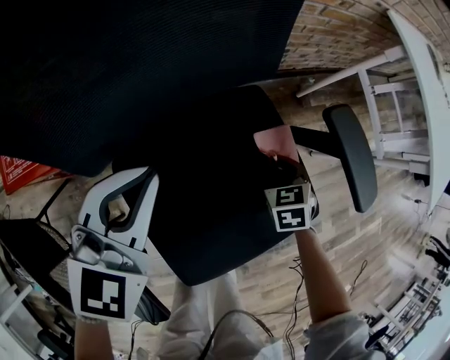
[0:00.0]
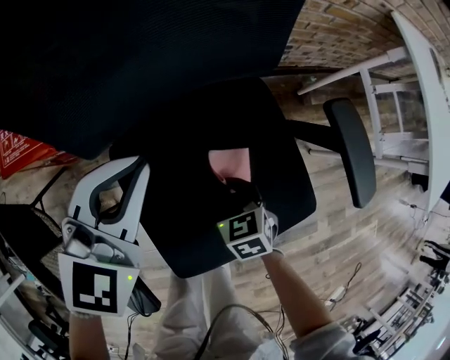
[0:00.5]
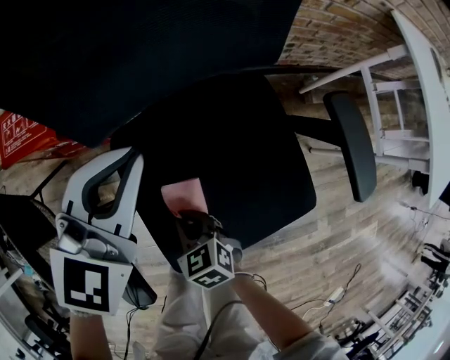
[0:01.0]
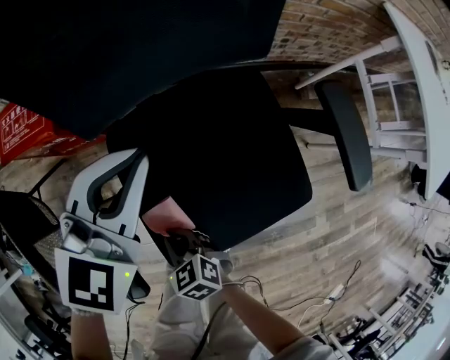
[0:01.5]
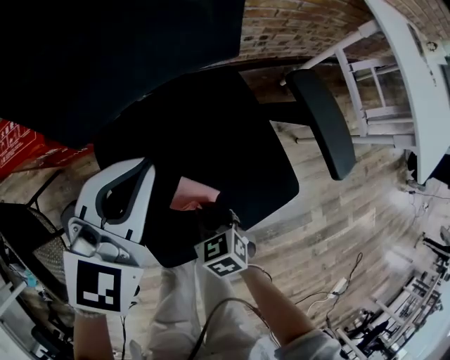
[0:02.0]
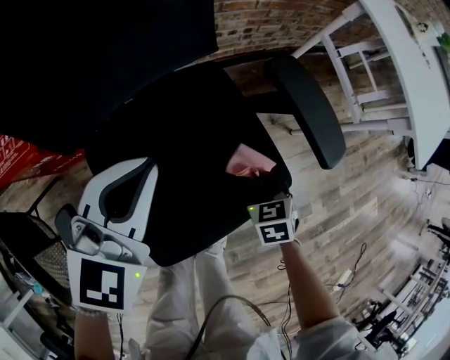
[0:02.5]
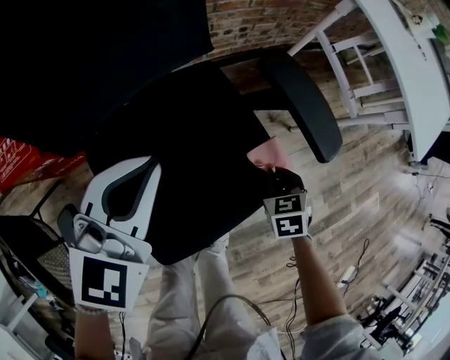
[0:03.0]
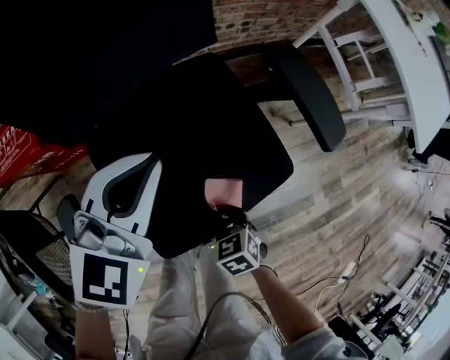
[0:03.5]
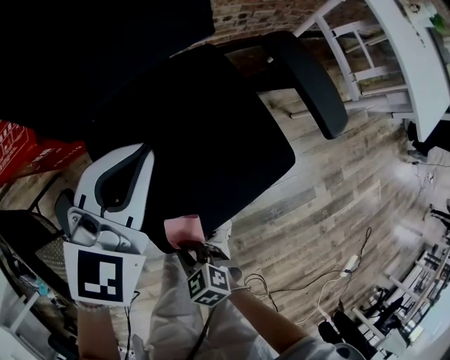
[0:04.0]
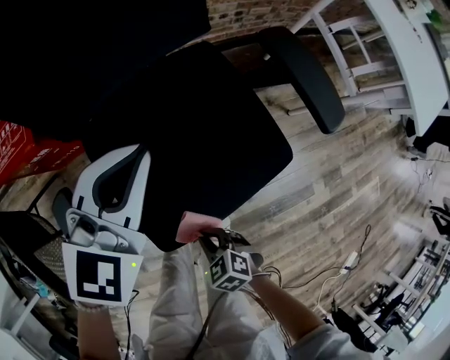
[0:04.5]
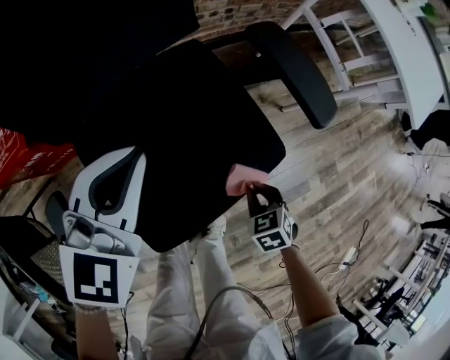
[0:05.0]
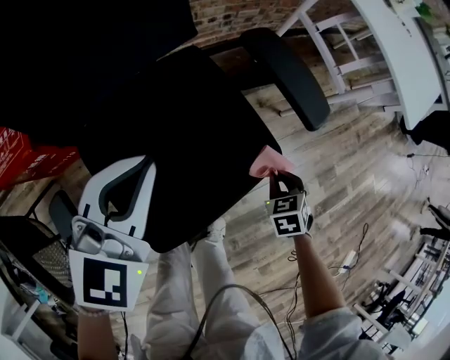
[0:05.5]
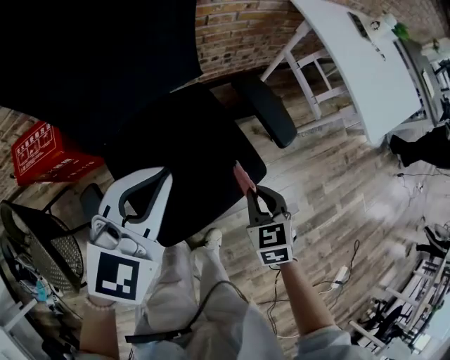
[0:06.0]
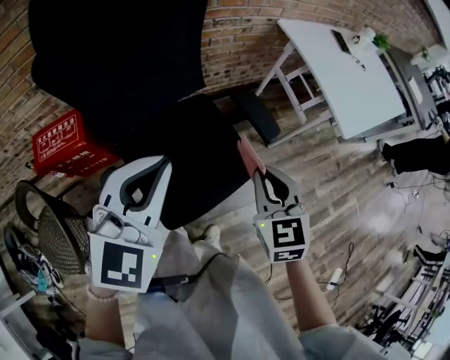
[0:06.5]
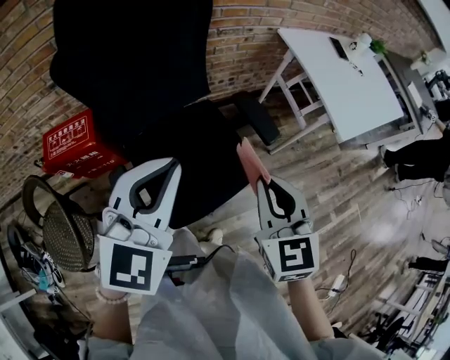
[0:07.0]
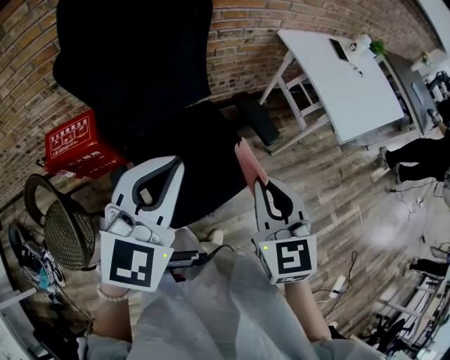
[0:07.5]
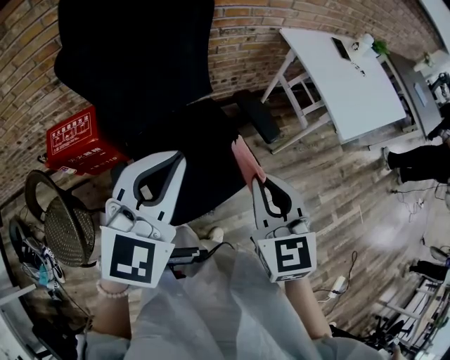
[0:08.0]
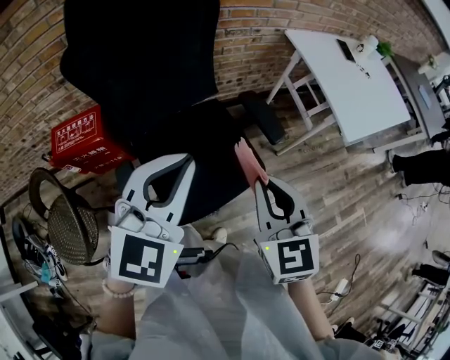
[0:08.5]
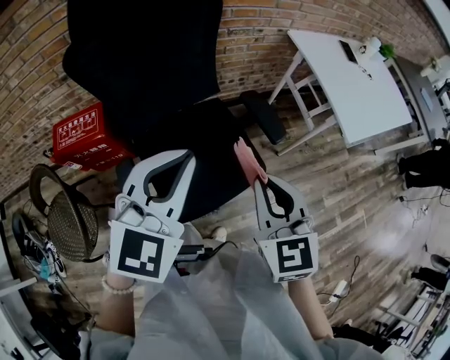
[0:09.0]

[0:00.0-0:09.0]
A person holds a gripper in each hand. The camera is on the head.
0:00.0 to 0:02.0: The left gripper shifts by about 10 cm; the right gripper turns by approximately 20 degrees.
0:02.0 to 0:04.5: The right gripper changes place by roughly 15 cm. The left gripper moves some 5 cm.
0:04.5 to 0:07.0: The right gripper moves upward, some 50 cm, and angles its fingers upward, by roughly 40 degrees; the left gripper is displaced upward by some 35 cm.
0:07.0 to 0:09.0: The grippers stay close to where they were, moving slightly.

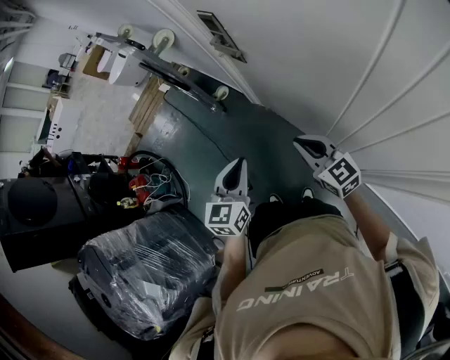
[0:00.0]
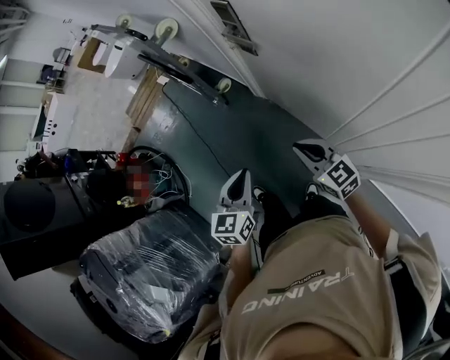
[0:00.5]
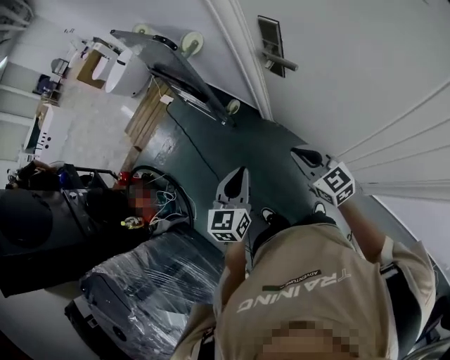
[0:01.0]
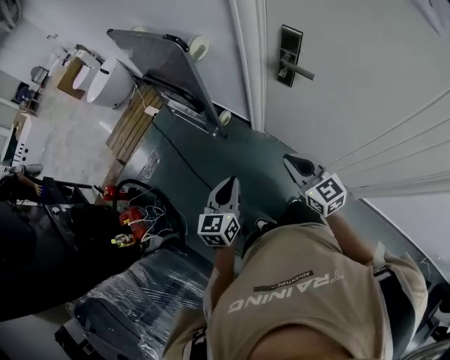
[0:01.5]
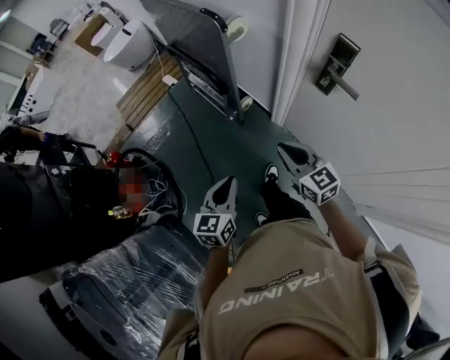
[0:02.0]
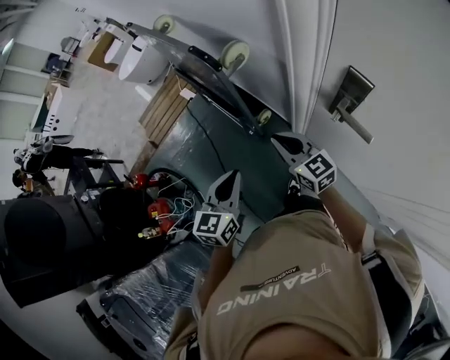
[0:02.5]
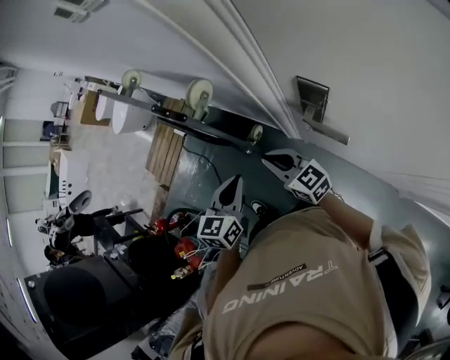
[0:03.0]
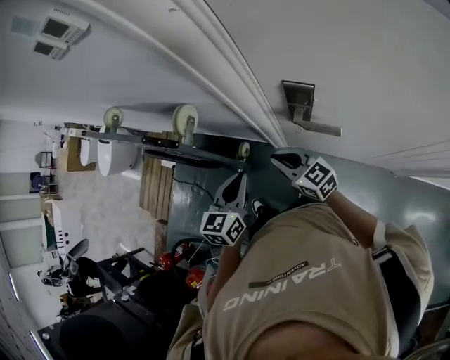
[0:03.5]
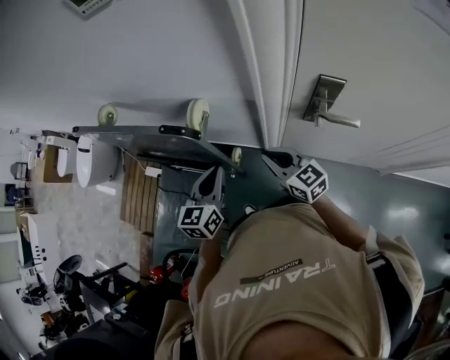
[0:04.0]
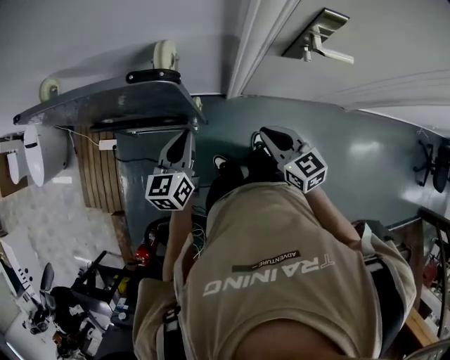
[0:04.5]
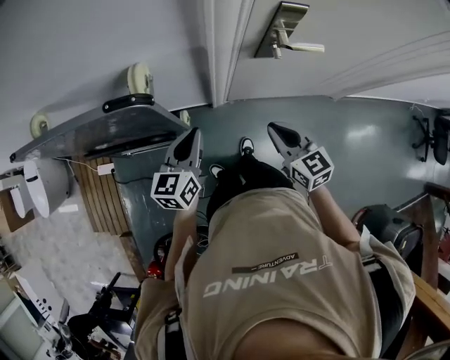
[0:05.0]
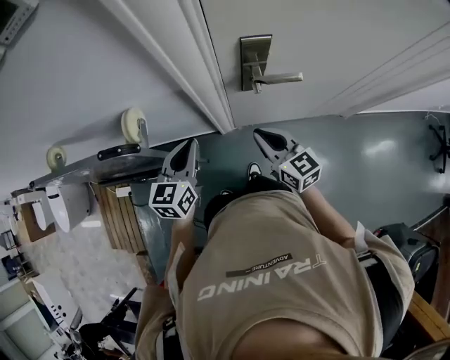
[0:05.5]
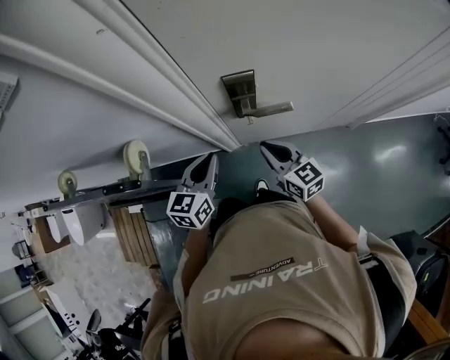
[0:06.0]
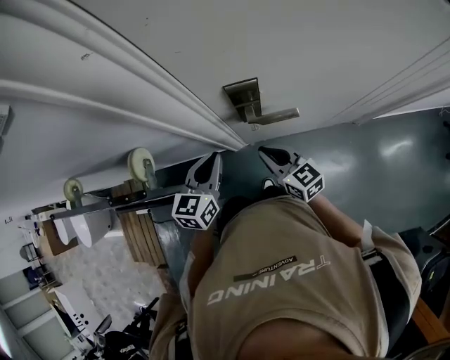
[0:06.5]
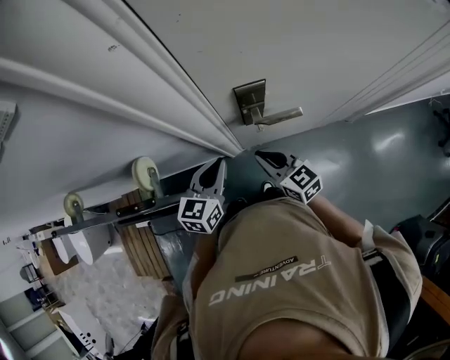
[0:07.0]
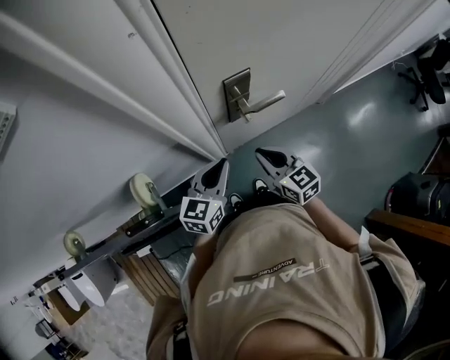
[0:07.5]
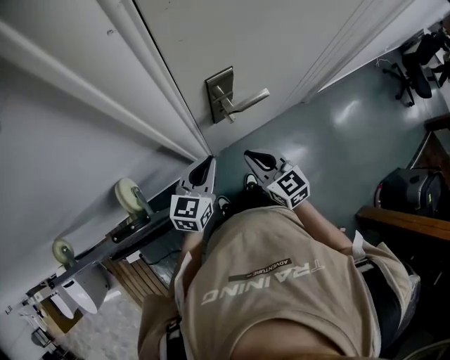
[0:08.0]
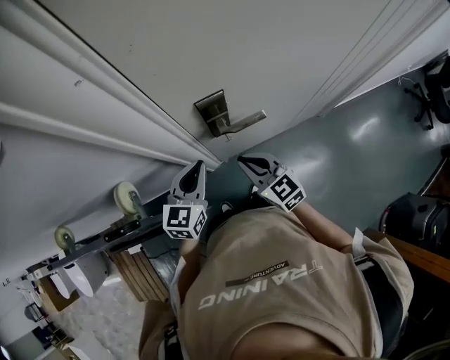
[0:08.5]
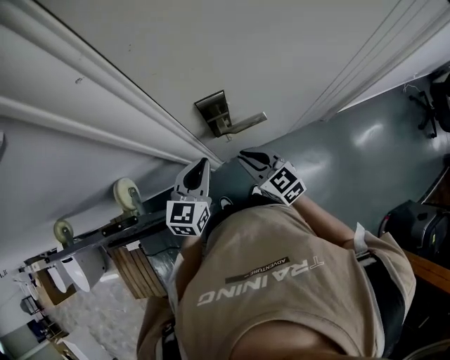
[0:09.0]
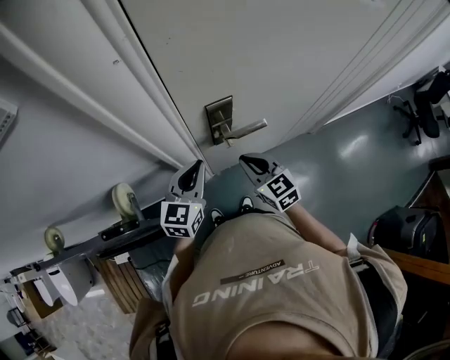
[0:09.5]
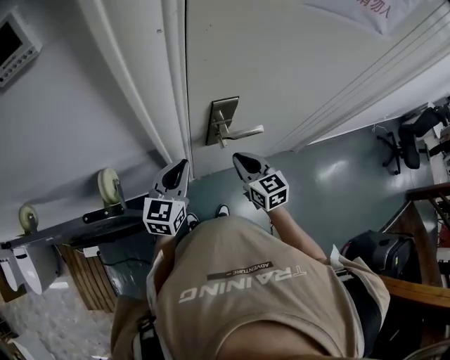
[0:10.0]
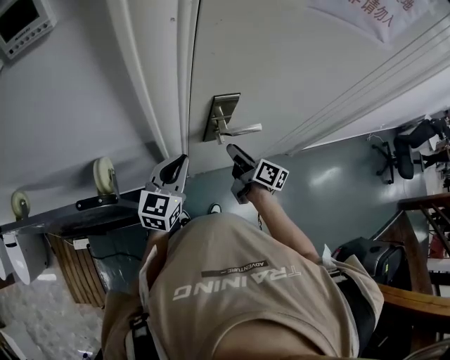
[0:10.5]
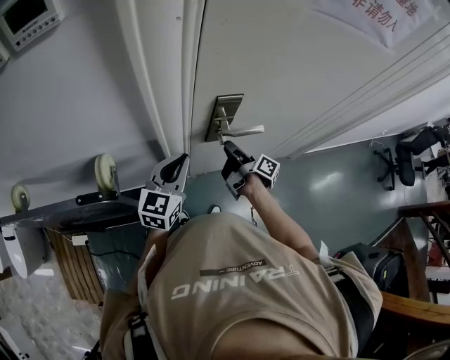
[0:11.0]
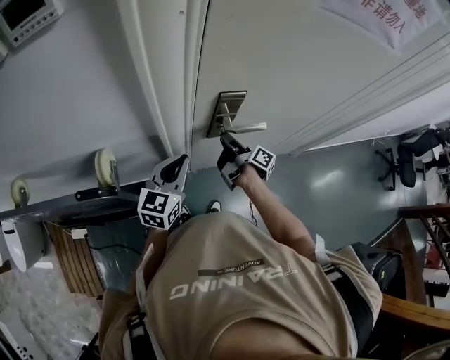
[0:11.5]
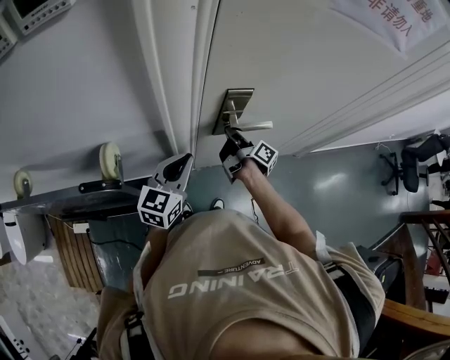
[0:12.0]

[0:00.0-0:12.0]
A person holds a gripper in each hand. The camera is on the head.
0:00.0 to 0:02.0: The pair of grippers is taken to the left and forward, approximately 40 cm.
0:02.0 to 0:04.0: The right gripper shifts by about 25 cm, and rotates some 30 degrees. The left gripper shifts by approximately 40 cm, and swivels about 30 degrees.
0:04.0 to 0:06.0: The right gripper ends up roughly 20 cm from where it was, and changes its angle by about 30 degrees, while the left gripper shifts by about 20 cm, and swivels approximately 30 degrees.
0:06.0 to 0:08.0: The left gripper changes its angle by approximately 30 degrees; the right gripper moves about 5 cm, and swivels roughly 20 degrees.
0:08.0 to 0:10.0: The left gripper changes place by approximately 5 cm. Meanwhile the right gripper heads forward, covering some 5 cm.
0:10.0 to 0:12.0: The right gripper goes roughly 10 cm forward and downward, rotates around the line of its fingers by approximately 80 degrees, clockwise from behind, and opens, then closes again.

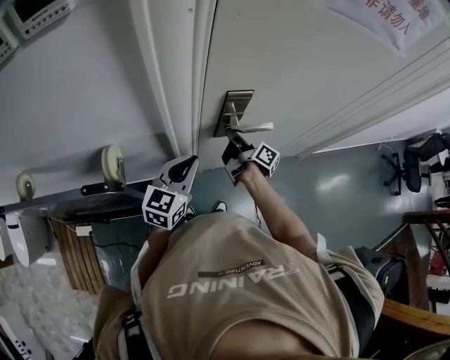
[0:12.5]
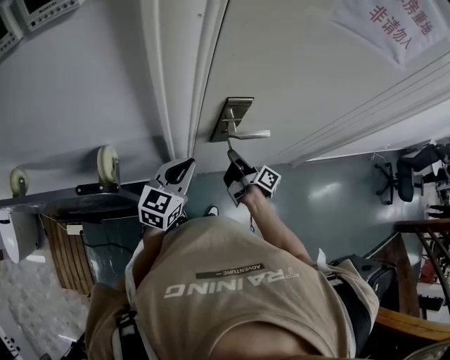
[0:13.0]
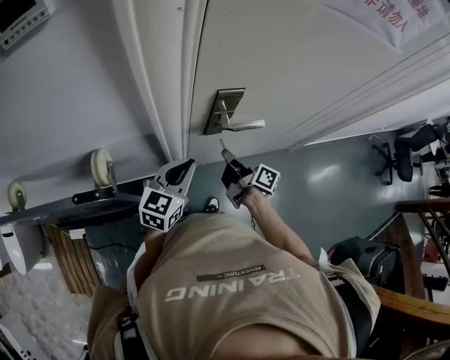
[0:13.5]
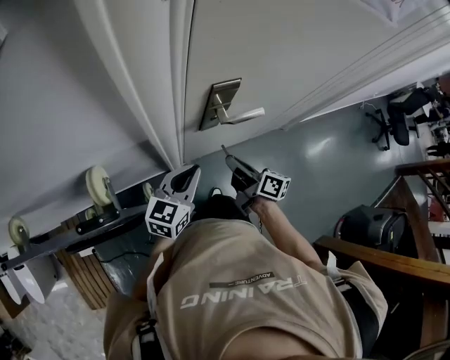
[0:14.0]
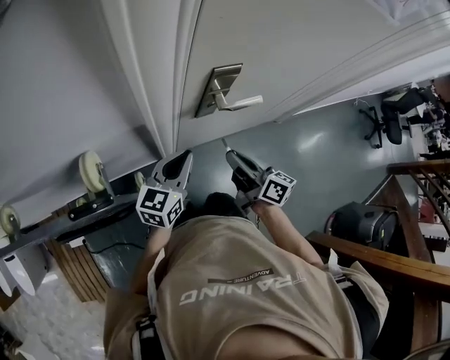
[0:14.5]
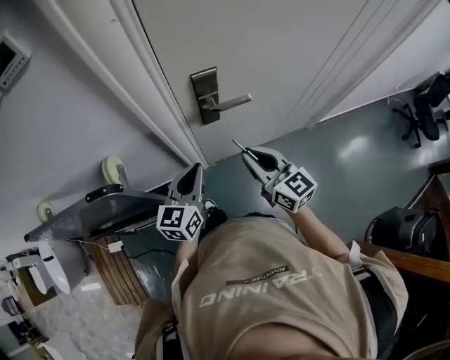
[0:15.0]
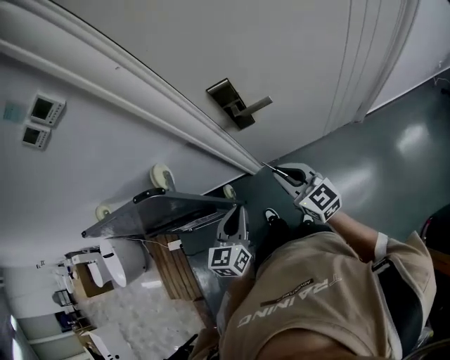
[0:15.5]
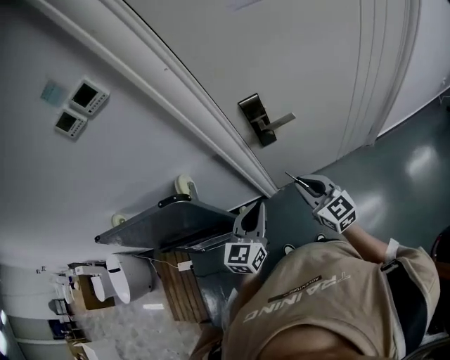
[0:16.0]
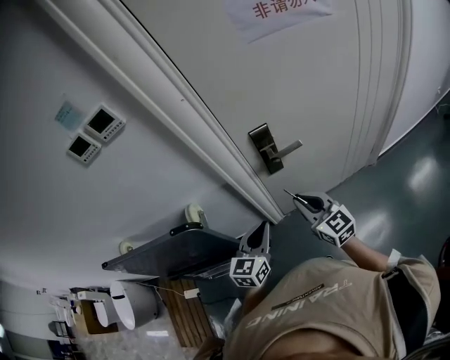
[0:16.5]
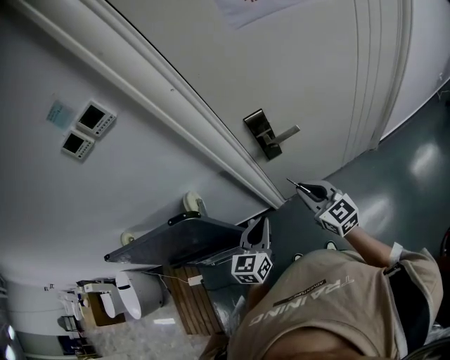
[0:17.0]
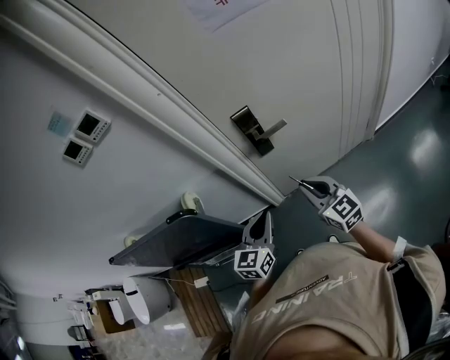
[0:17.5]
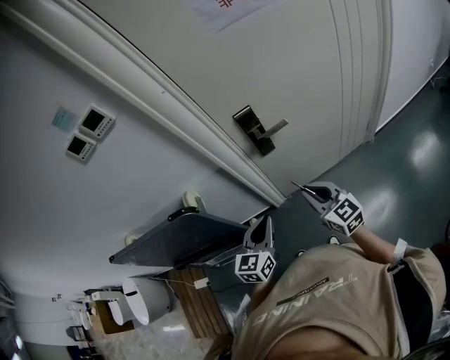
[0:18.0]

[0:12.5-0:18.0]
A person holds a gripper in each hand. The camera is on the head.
0:12.5 to 0:14.5: The right gripper heads backward, covering approximately 15 cm, and changes its angle by about 30 degrees.
0:14.5 to 0:16.0: The two grippers go some 15 cm backward and upward. The right gripper rotates around the line of its fingers by about 50 degrees, counterclockwise from behind.
0:16.0 to 0:18.0: The grippers move only a little.
